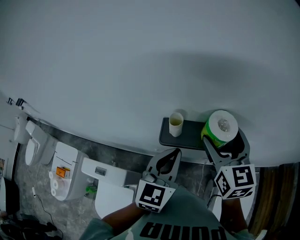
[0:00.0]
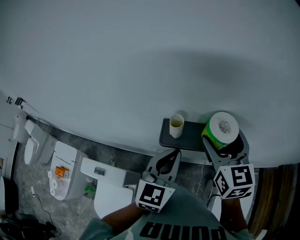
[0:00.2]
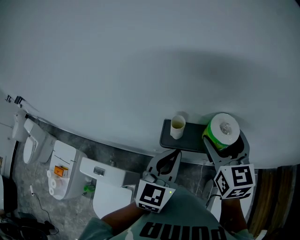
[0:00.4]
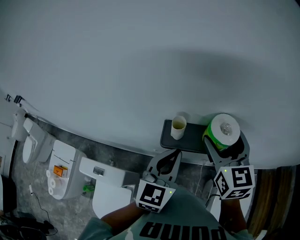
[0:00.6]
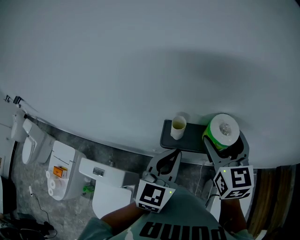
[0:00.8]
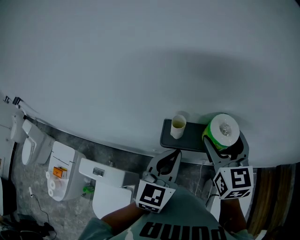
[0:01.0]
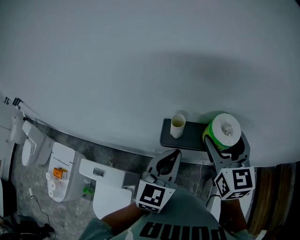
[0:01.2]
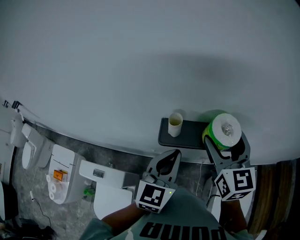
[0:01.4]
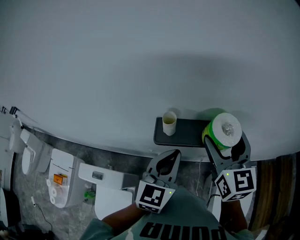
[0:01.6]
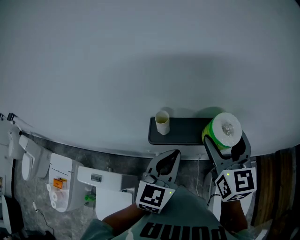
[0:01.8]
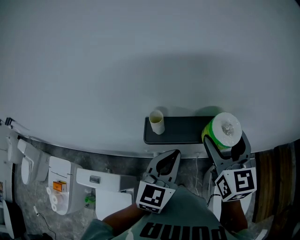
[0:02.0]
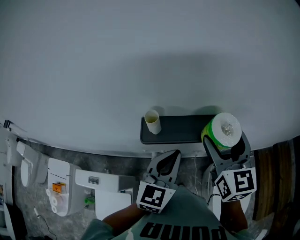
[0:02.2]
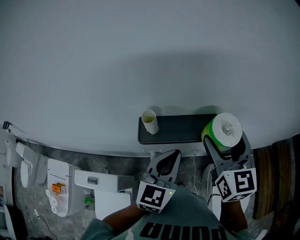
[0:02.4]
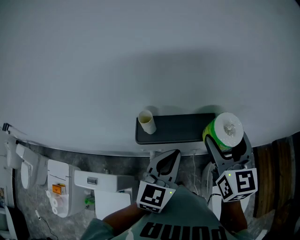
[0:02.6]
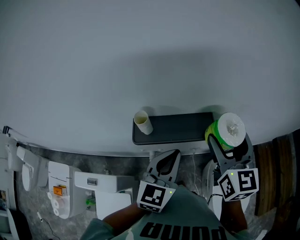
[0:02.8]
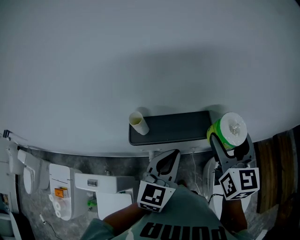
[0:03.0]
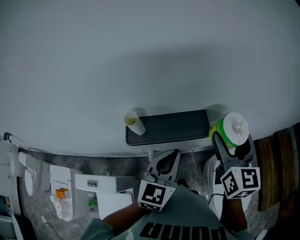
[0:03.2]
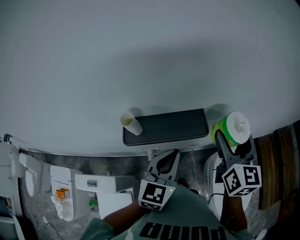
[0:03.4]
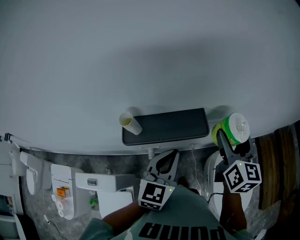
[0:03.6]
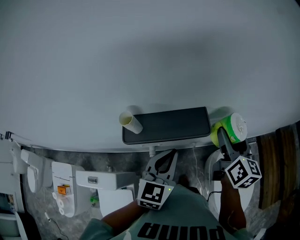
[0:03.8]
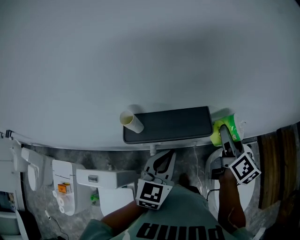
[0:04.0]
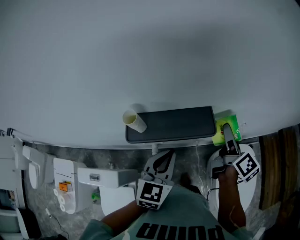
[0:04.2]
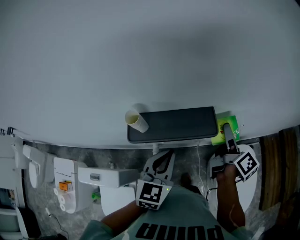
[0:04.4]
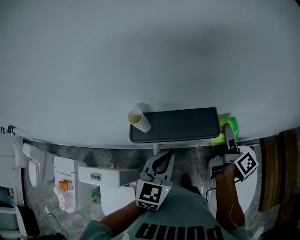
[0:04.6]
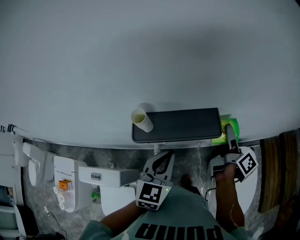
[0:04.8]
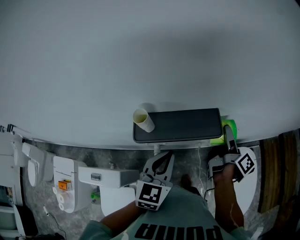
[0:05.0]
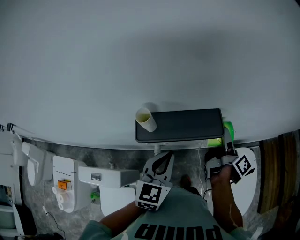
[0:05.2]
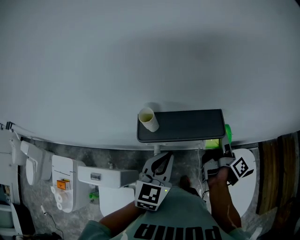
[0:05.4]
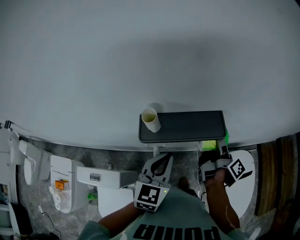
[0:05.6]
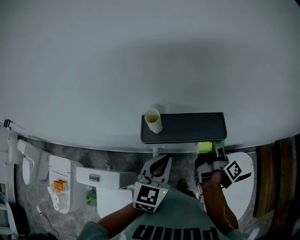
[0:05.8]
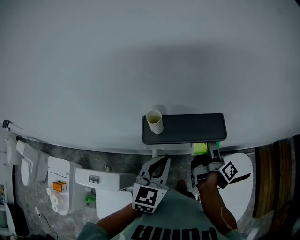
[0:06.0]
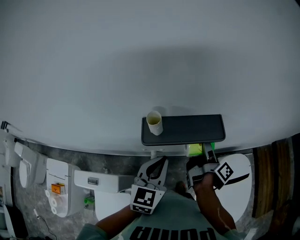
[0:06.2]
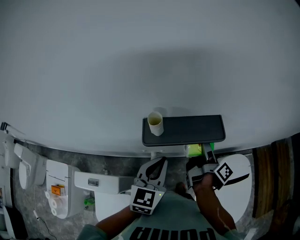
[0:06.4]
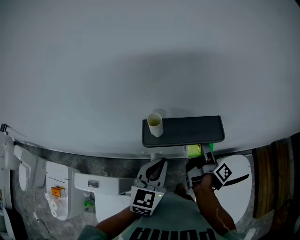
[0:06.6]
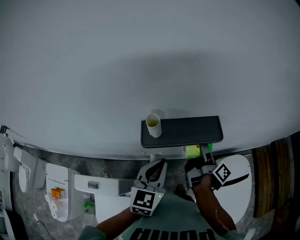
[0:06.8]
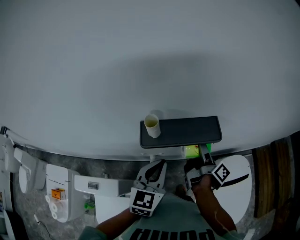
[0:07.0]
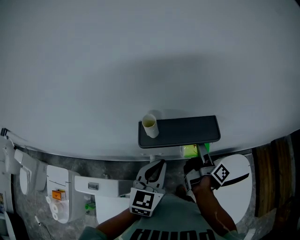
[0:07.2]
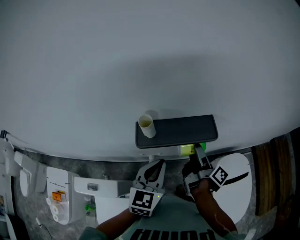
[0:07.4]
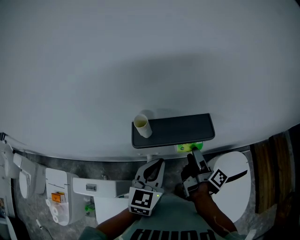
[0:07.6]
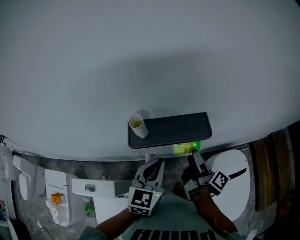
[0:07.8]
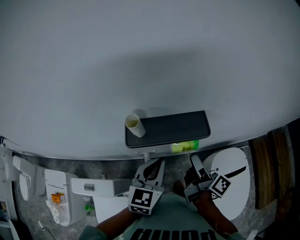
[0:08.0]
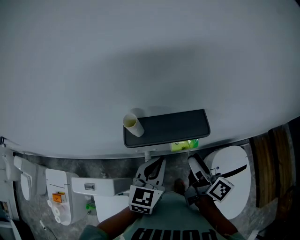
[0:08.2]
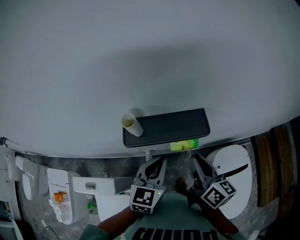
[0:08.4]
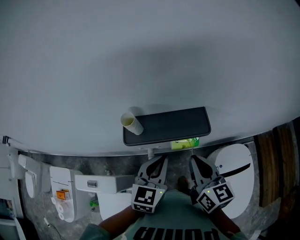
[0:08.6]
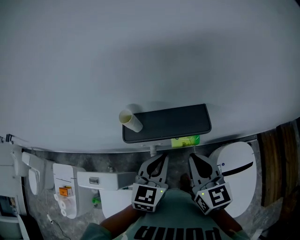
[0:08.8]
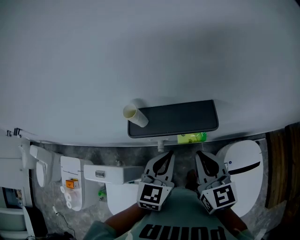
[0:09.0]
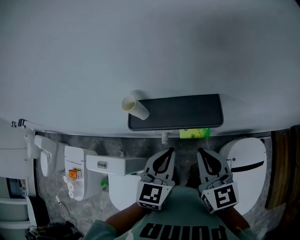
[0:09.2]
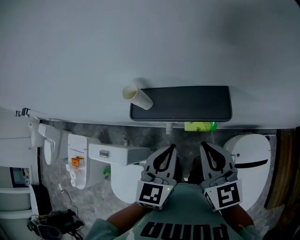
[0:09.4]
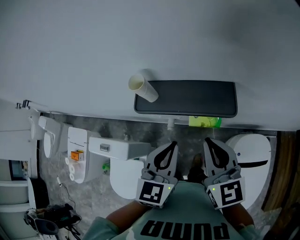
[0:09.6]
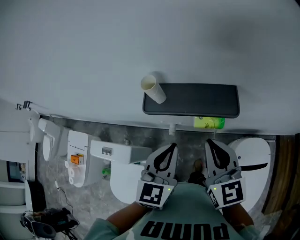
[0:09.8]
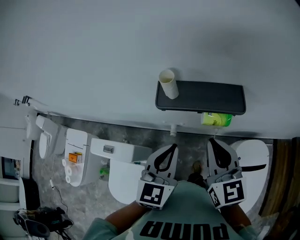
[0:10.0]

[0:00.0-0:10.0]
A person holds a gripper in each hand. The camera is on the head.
0:00.0 to 0:01.4: The grippers make only small movements.
0:01.4 to 0:02.8: Both grippers move to the right, about 10 cm.
0:02.8 to 0:04.2: The right gripper travels downward and to the right by some 15 cm, and twists about 60 degrees clockwise, seen from behind.
0:04.2 to 0:05.8: The right gripper travels to the left by some 10 cm, and rotates roughly 40 degrees. Meanwhile the left gripper moves to the left, approximately 5 cm.
0:05.8 to 0:07.2: The grippers stay close to where they were, moving slightly.
0:07.2 to 0:08.6: The right gripper heads backward and upward, covering roughly 10 cm, rolls counterclockwise, seen from behind, by some 70 degrees, and closes its fingers.
0:08.6 to 0:10.0: The right gripper ends up approximately 5 cm from where it was, and turns by about 20 degrees. The left gripper is displaced to the left and backward by approximately 10 cm.

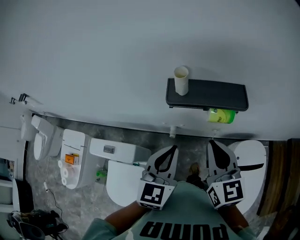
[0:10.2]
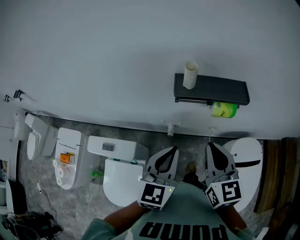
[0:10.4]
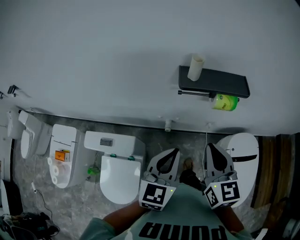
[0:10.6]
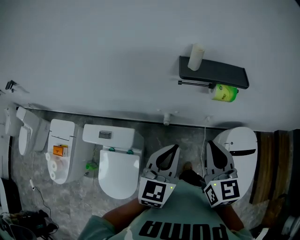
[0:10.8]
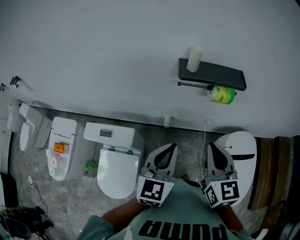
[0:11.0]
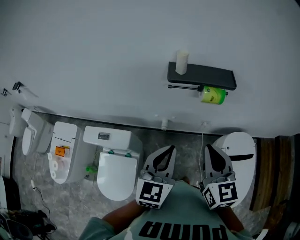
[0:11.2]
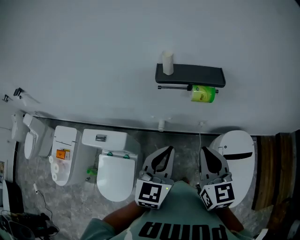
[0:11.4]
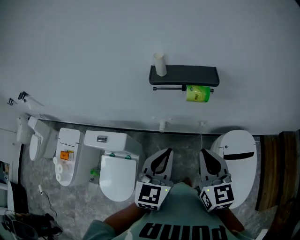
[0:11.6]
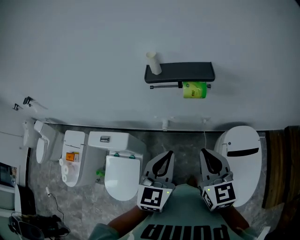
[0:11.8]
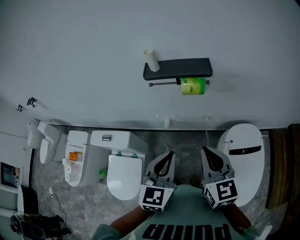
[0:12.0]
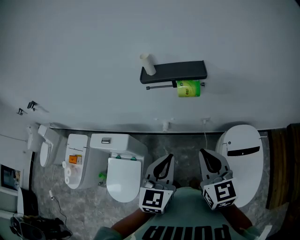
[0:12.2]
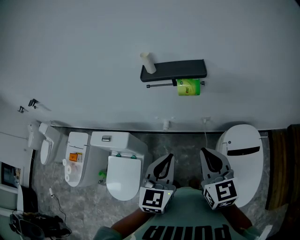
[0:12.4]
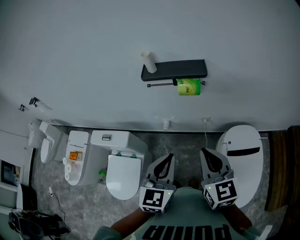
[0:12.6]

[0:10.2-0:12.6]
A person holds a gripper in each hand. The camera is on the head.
0:10.2 to 0:11.4: The two grippers go about 15 cm backward.
0:11.4 to 0:12.6: The left gripper goes some 10 cm backward and to the right; the right gripper travels to the right and backward by roughly 10 cm.

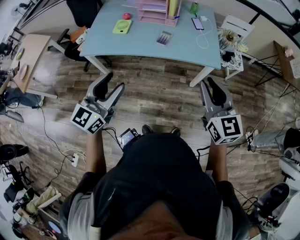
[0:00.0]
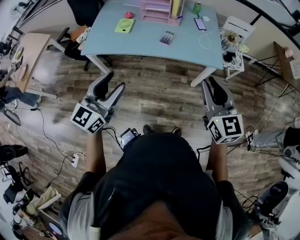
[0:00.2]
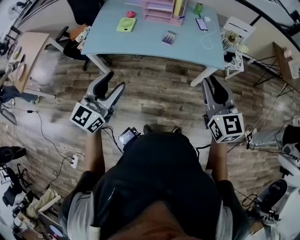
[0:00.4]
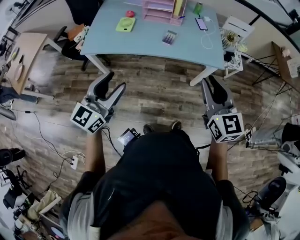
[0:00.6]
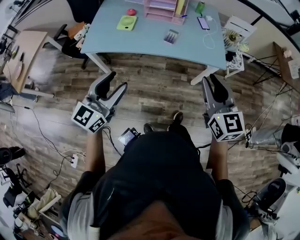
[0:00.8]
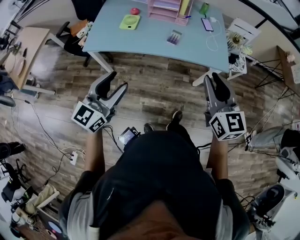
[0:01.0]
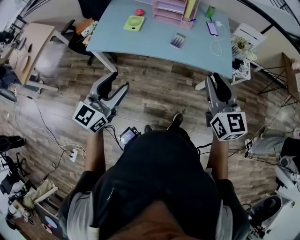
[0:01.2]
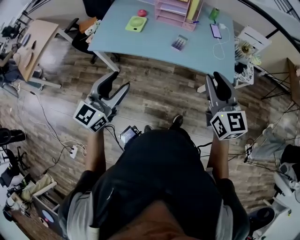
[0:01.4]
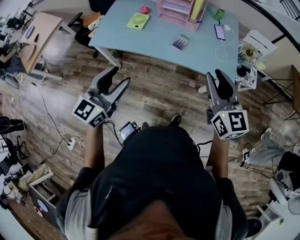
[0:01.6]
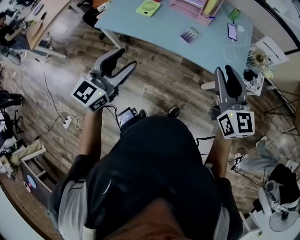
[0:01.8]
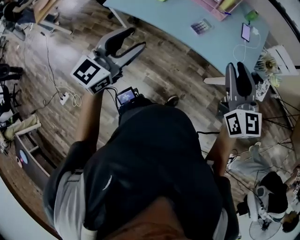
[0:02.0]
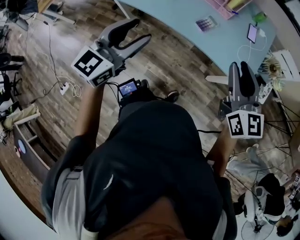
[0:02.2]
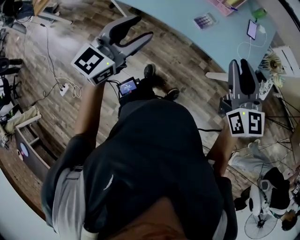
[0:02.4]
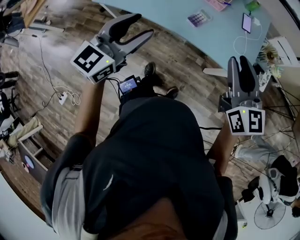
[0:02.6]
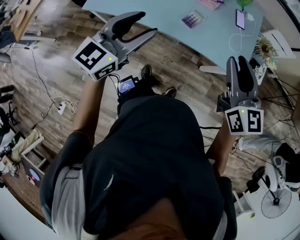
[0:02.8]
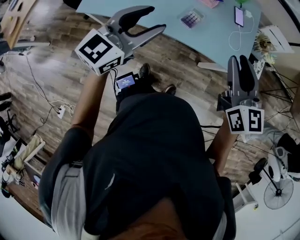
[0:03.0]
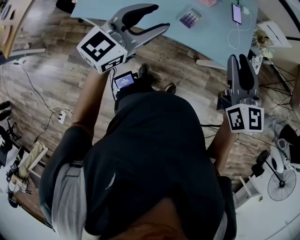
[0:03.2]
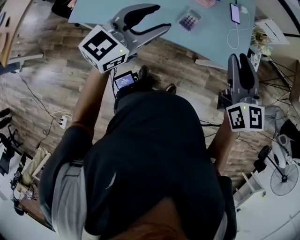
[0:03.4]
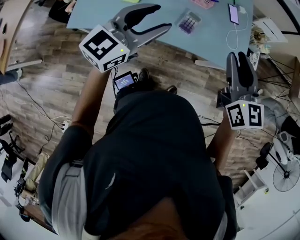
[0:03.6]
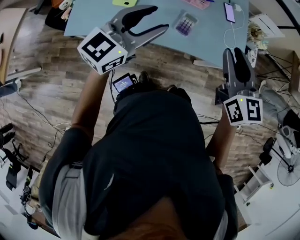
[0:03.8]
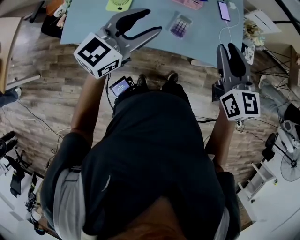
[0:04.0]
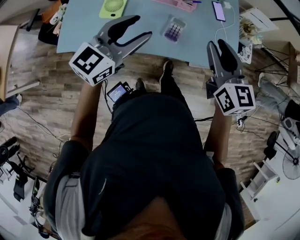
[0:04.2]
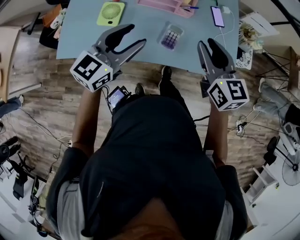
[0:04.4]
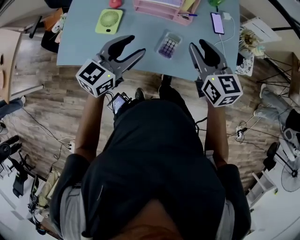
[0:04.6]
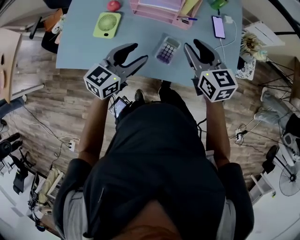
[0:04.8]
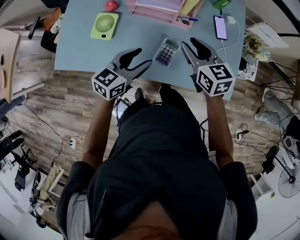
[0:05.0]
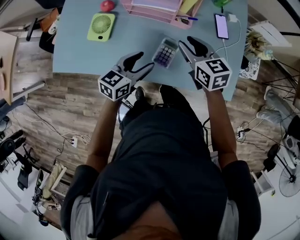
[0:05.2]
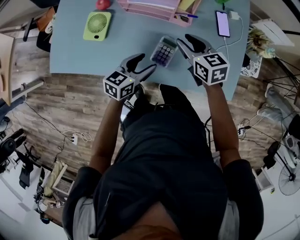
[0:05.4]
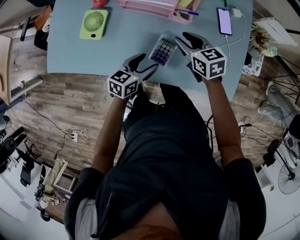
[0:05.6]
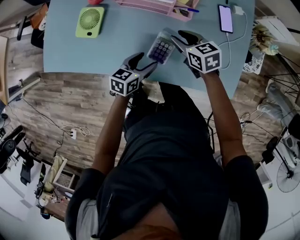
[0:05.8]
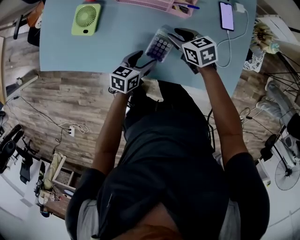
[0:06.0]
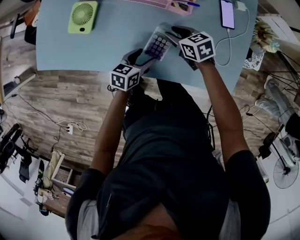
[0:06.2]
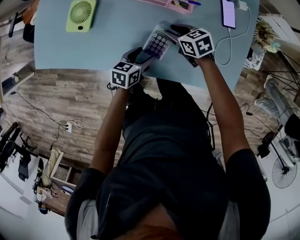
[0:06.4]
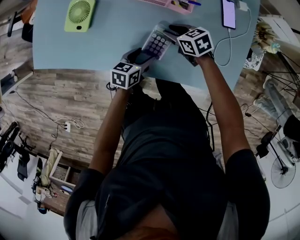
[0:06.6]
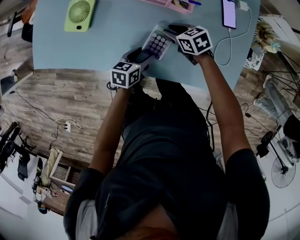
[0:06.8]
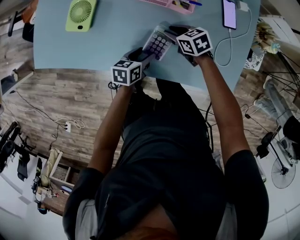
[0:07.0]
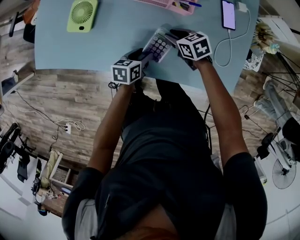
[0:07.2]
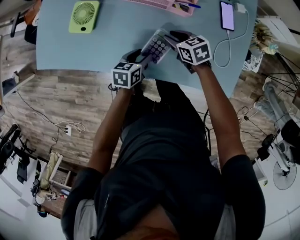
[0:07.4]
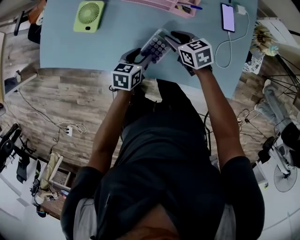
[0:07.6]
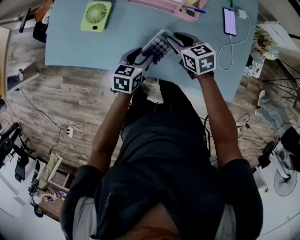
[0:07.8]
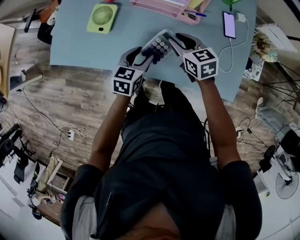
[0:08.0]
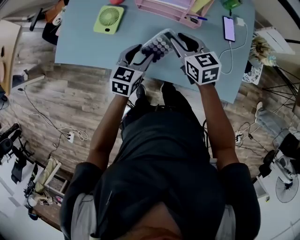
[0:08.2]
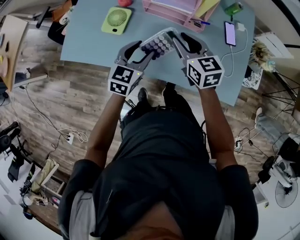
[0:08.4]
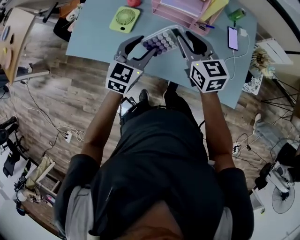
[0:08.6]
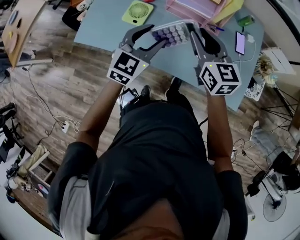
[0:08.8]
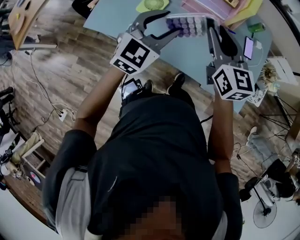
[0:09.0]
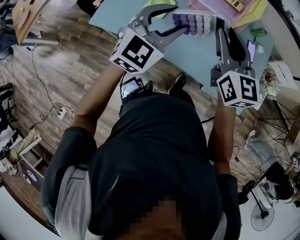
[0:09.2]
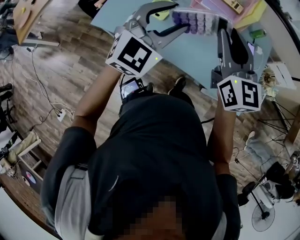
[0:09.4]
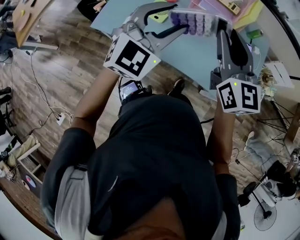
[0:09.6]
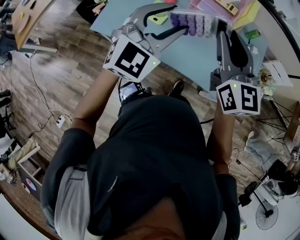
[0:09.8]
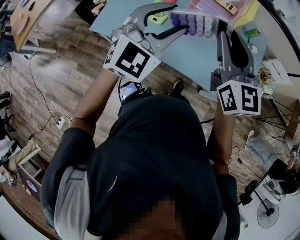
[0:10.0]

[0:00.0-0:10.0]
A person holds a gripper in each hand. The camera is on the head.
0:00.0 to 0:01.4: The left gripper is displaced forward by approximately 5 cm, while the right gripper moves forward and to the left, some 15 cm.
0:01.4 to 0:02.8: The left gripper travels forward and to the right by about 20 cm. Meanwhile the right gripper heads forward, covering some 15 cm.
0:02.8 to 0:04.2: The right gripper shifts approximately 15 cm forward and to the left. Meanwhile the left gripper shifts approximately 15 cm forward.
0:04.2 to 0:05.8: The left gripper travels downward by about 35 cm, and swivels some 50 degrees. Meanwhile the right gripper goes roughly 35 cm downward and forward, and changes its angle by about 40 degrees.
0:05.8 to 0:07.2: The right gripper goes approximately 10 cm downward, while the left gripper goes some 5 cm downward.
0:07.2 to 0:08.6: Both grippers move upward, roughly 30 cm. The left gripper twists roughly 40 degrees clockwise, seen from behind, while the right gripper angles its fingers upward, by about 30 degrees.
0:08.6 to 0:10.0: The right gripper travels upward and backward by approximately 20 cm, and changes its angle by roughly 20 degrees. Meanwhile the left gripper moves upward, roughly 20 cm, and changes its angle by some 30 degrees.

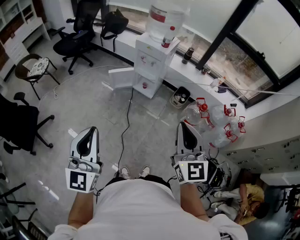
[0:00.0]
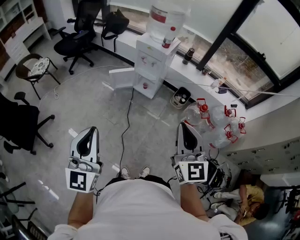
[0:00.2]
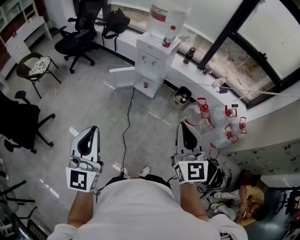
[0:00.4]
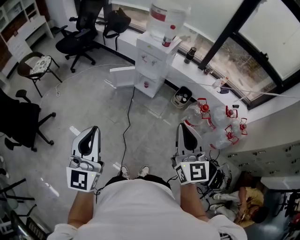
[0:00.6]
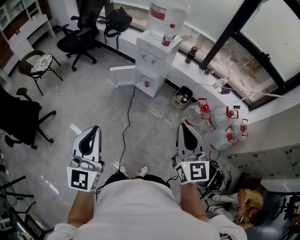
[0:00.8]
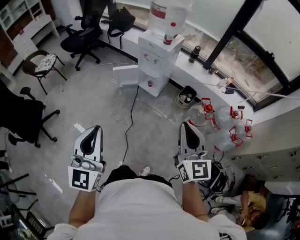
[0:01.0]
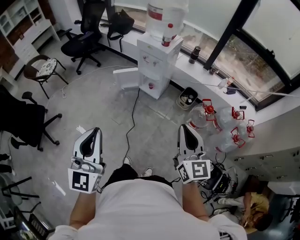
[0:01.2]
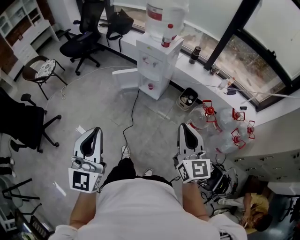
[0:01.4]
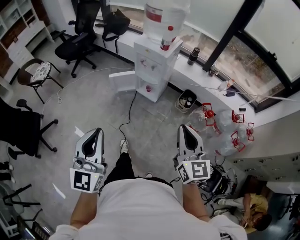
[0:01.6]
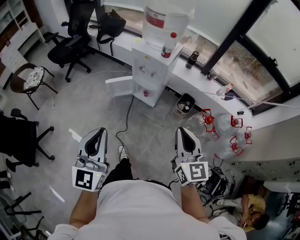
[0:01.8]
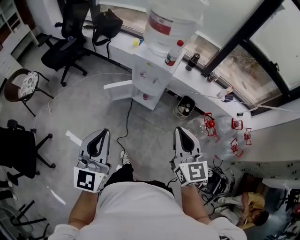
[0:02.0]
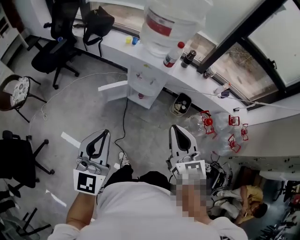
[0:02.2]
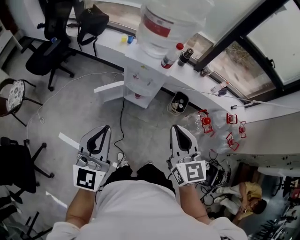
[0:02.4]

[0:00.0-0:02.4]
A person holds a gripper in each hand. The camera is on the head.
0:00.0 to 0:01.2: The right gripper goes approximately 10 cm to the right and downward; the left gripper shifts approximately 10 cm to the right.
0:01.2 to 0:02.4: The right gripper heads forward and to the left, covering roughly 30 cm, while the left gripper travels forward by about 35 cm.
